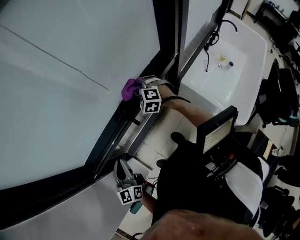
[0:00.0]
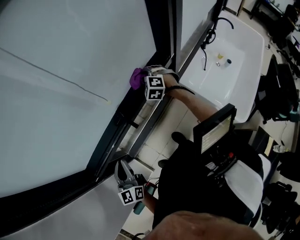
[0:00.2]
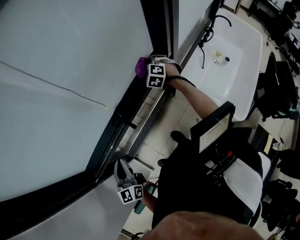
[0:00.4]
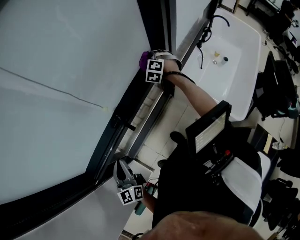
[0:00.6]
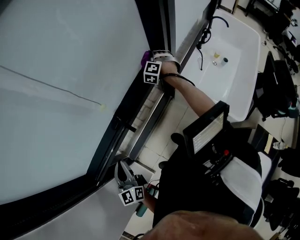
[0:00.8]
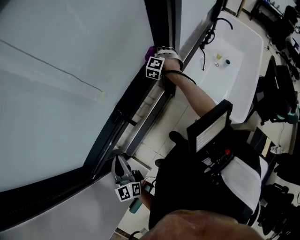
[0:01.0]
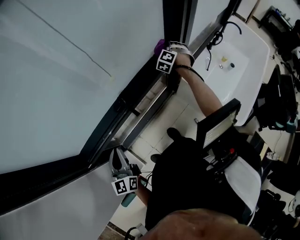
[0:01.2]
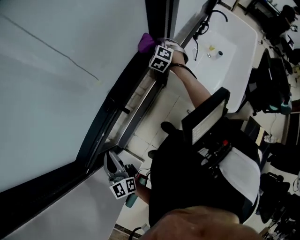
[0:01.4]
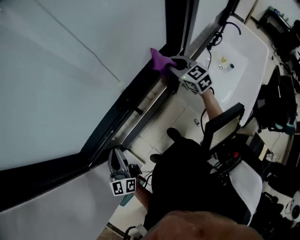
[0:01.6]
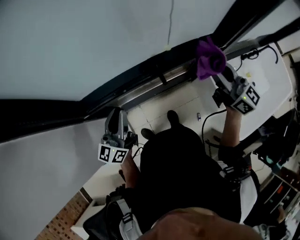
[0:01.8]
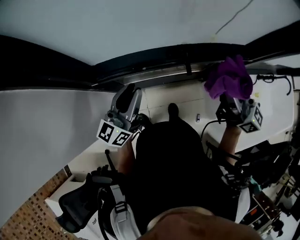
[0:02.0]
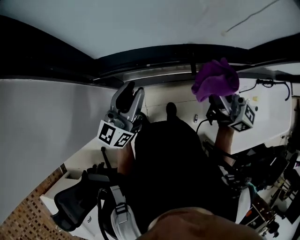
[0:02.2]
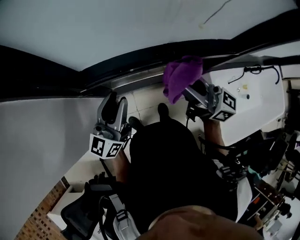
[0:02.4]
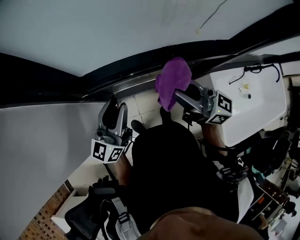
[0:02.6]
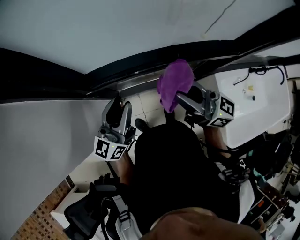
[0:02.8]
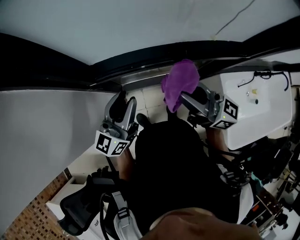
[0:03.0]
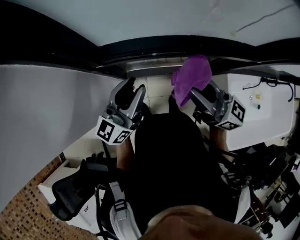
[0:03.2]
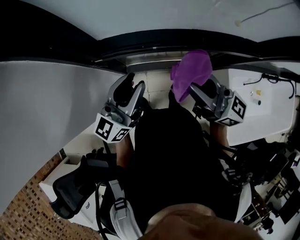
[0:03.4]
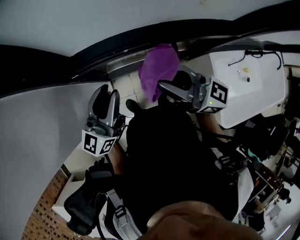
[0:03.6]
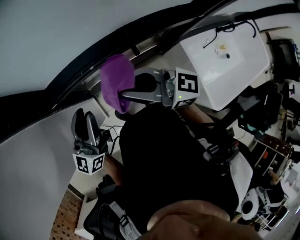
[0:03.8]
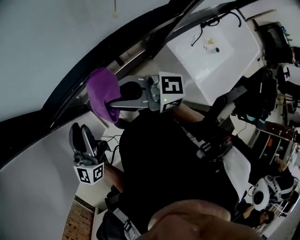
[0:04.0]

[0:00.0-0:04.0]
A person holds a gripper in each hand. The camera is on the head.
0:00.0 to 0:01.4: The right gripper shifts by roughly 20 cm, and changes its angle by some 30 degrees.
0:01.4 to 0:02.6: The right gripper moves roughly 40 cm, and tips its fingers upward by approximately 60 degrees; the left gripper opens.
0:02.6 to 0:04.0: The right gripper heads to the left, covering approximately 5 cm.

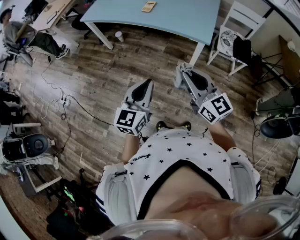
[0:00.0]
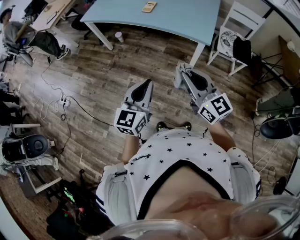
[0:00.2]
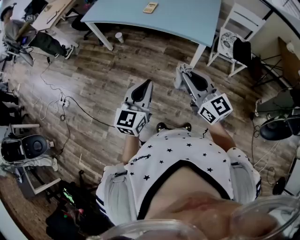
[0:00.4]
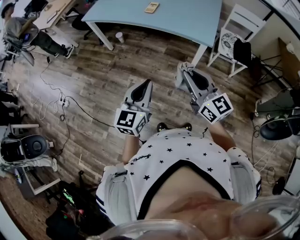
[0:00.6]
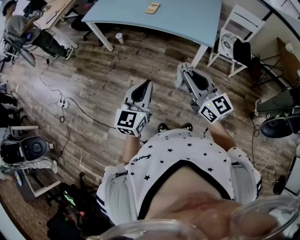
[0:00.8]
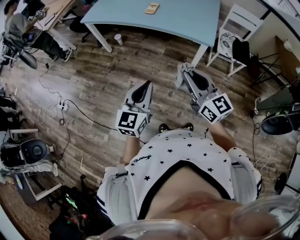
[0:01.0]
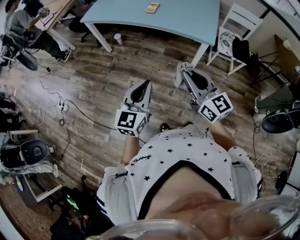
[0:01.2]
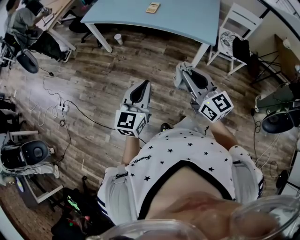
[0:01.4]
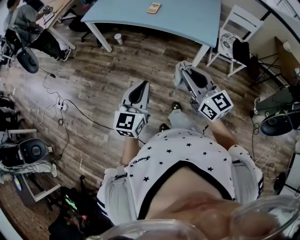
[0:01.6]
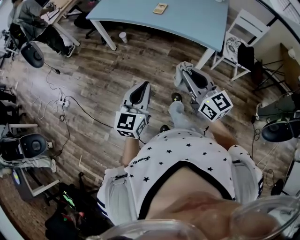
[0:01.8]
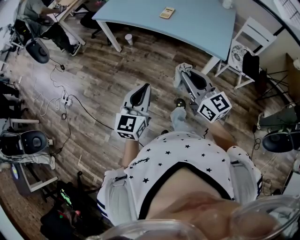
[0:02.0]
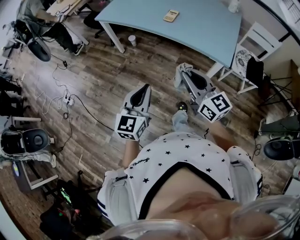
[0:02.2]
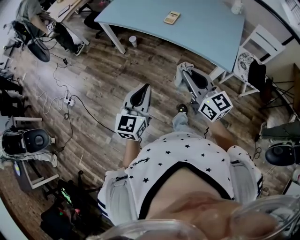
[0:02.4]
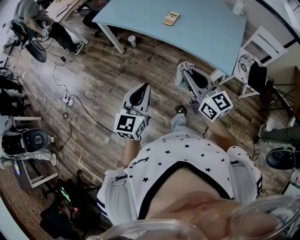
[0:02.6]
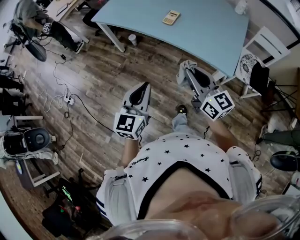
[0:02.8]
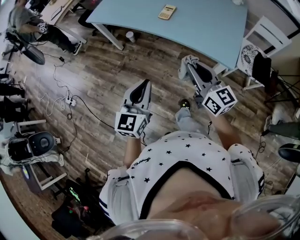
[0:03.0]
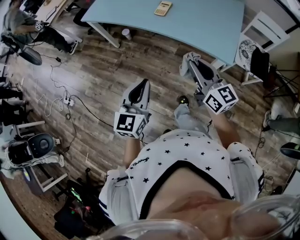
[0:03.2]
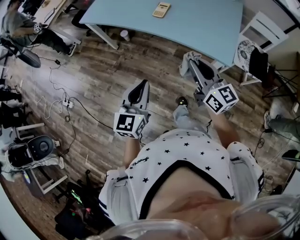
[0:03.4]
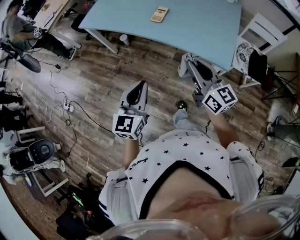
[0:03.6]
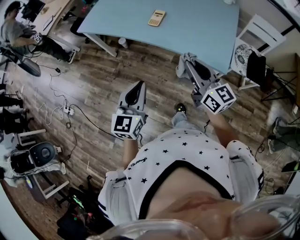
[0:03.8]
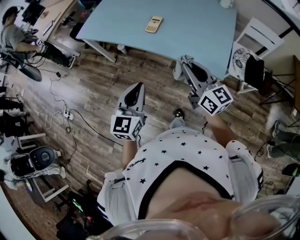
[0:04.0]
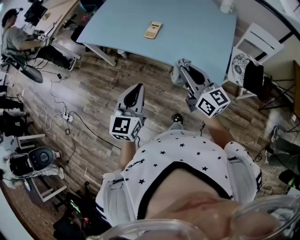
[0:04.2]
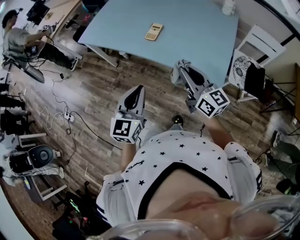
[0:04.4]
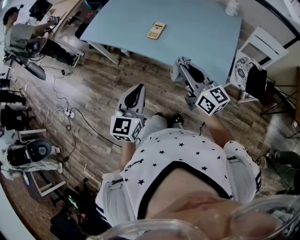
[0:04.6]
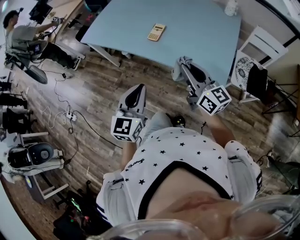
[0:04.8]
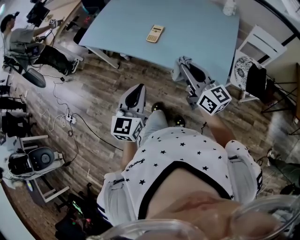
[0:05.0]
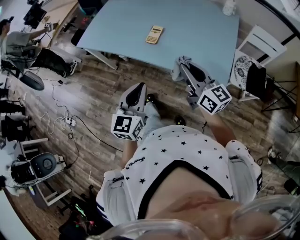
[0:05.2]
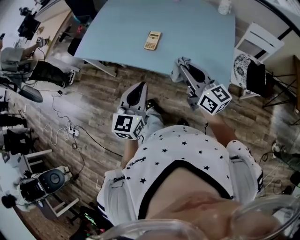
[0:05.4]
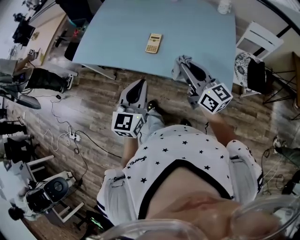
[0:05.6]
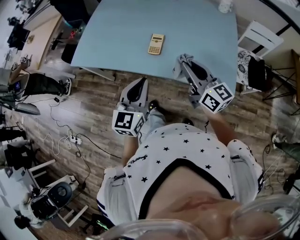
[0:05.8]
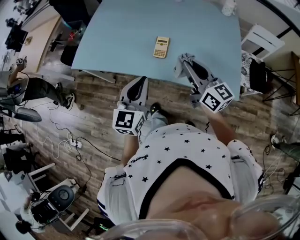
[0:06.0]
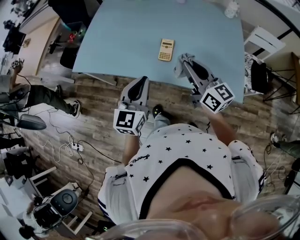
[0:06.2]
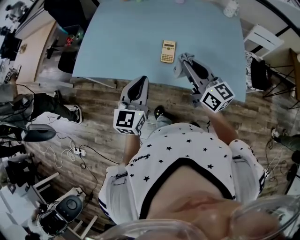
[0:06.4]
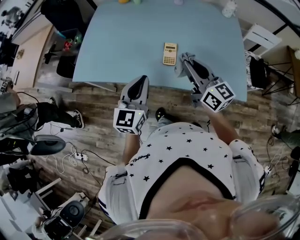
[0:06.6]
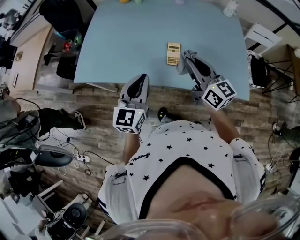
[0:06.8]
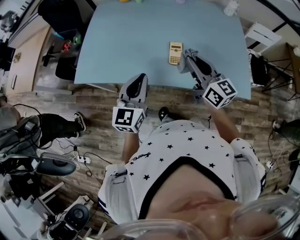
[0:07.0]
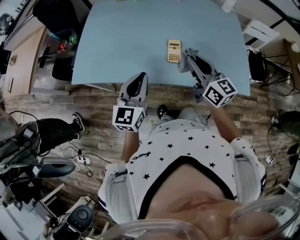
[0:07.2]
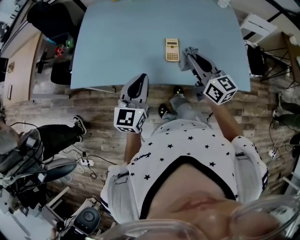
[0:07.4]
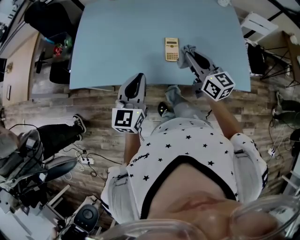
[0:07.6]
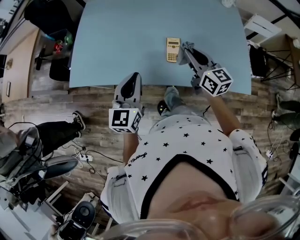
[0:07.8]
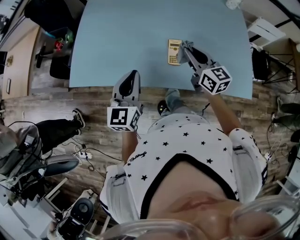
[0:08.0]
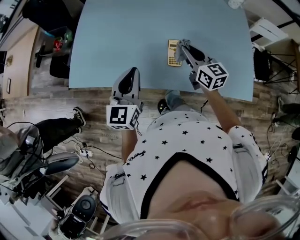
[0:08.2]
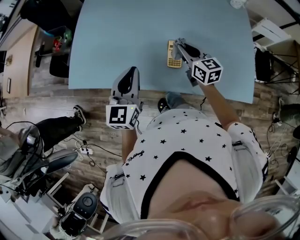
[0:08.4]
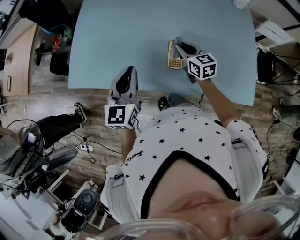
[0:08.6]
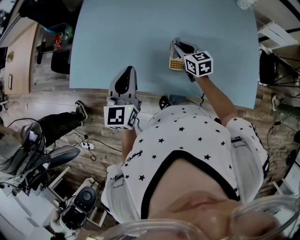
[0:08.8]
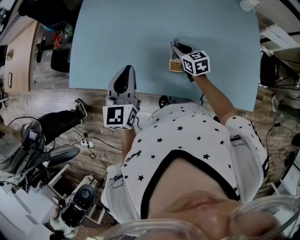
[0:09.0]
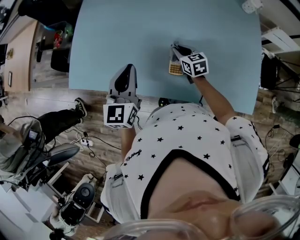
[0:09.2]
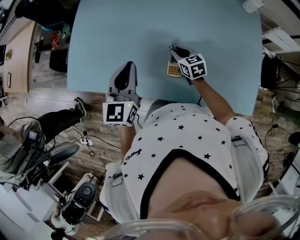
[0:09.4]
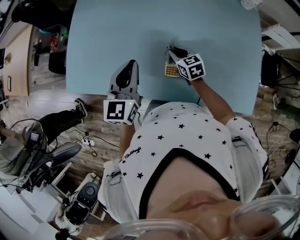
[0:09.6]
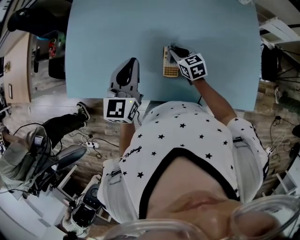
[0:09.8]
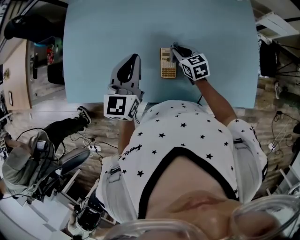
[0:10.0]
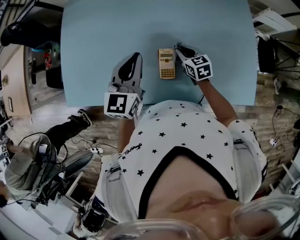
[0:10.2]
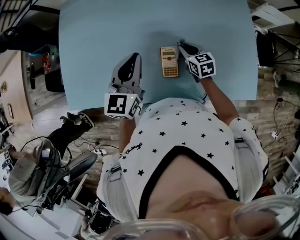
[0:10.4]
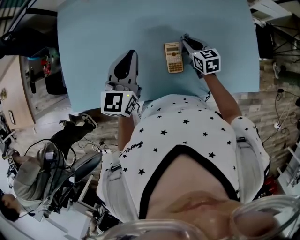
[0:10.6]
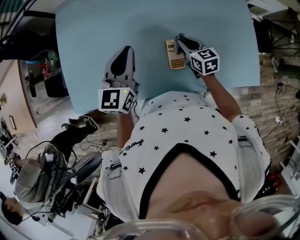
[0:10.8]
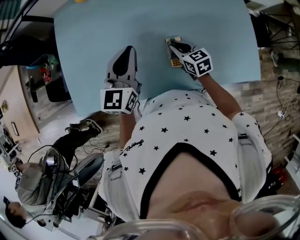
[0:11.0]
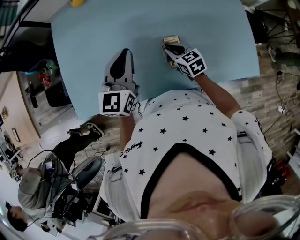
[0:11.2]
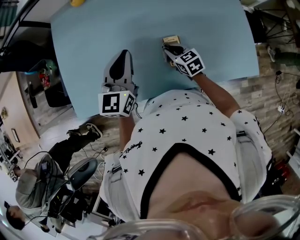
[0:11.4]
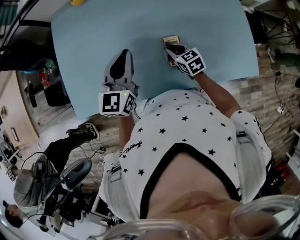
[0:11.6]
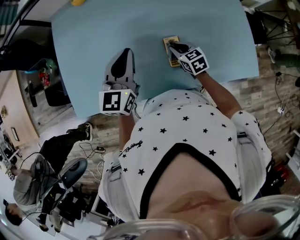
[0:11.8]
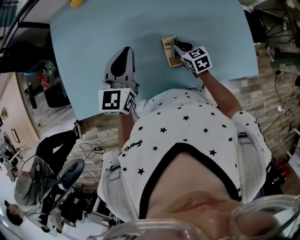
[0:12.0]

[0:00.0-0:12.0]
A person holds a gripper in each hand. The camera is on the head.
0:00.0 to 0:01.6: Both grippers travel together to the left, approximately 10 cm.
0:01.6 to 0:03.0: Both grippers travel together forward, roughly 20 cm.
0:03.0 to 0:04.4: The two grippers go approximately 10 cm forward and to the right.
0:04.4 to 0:06.0: The right gripper is displaced forward and to the left by some 20 cm. The left gripper travels forward by some 20 cm.
0:06.0 to 0:07.6: The right gripper moves forward and to the left, some 10 cm. The left gripper shifts roughly 15 cm to the left and forward.
0:07.6 to 0:09.0: The left gripper heads forward, covering about 10 cm; the right gripper heads downward and forward, covering approximately 25 cm, and changes its angle by roughly 30 degrees.
0:09.0 to 0:10.4: The right gripper travels to the right by some 10 cm, while the left gripper shifts some 10 cm forward and to the right.
0:10.4 to 0:12.0: The left gripper shifts by some 5 cm.

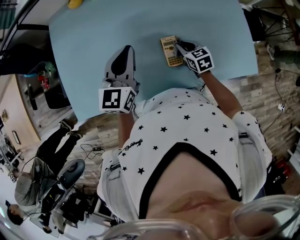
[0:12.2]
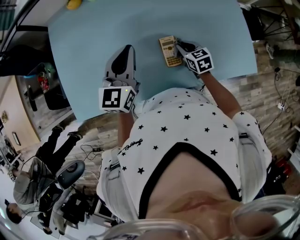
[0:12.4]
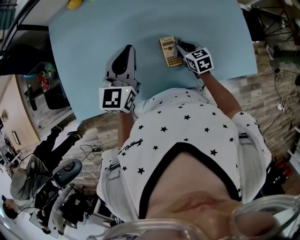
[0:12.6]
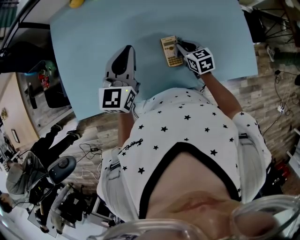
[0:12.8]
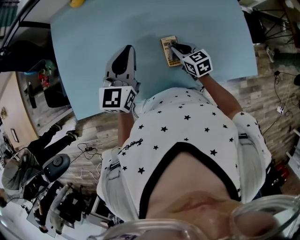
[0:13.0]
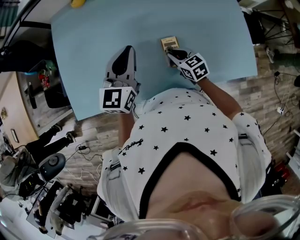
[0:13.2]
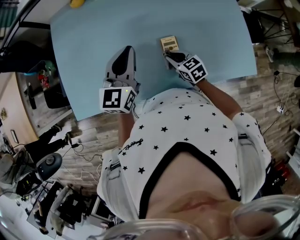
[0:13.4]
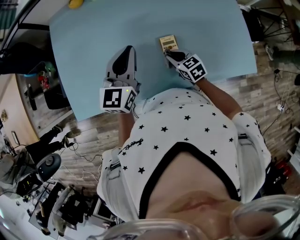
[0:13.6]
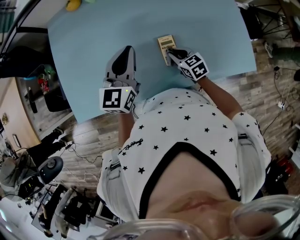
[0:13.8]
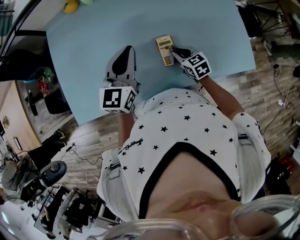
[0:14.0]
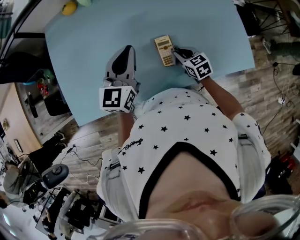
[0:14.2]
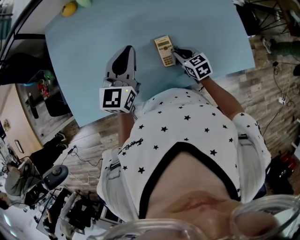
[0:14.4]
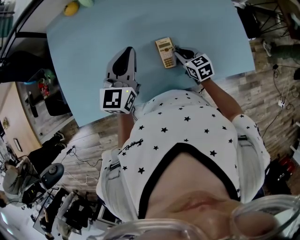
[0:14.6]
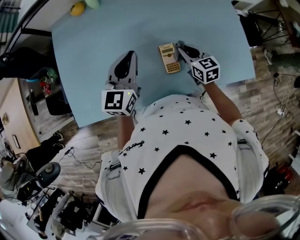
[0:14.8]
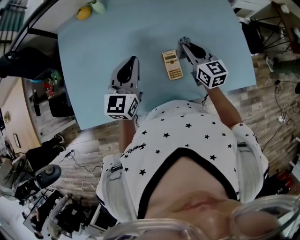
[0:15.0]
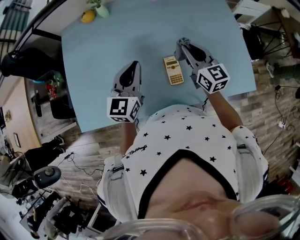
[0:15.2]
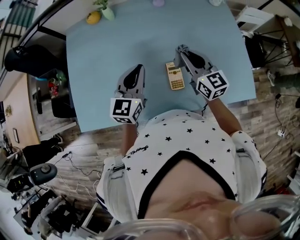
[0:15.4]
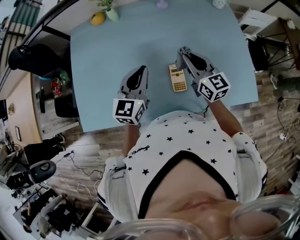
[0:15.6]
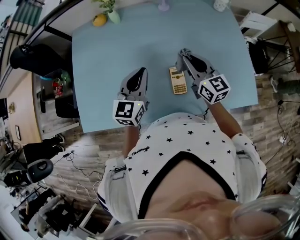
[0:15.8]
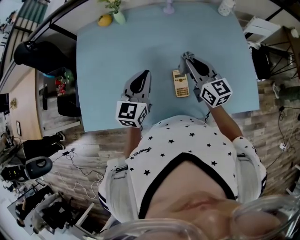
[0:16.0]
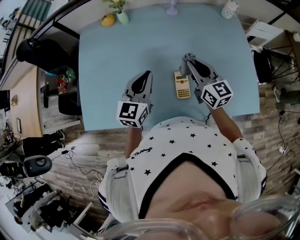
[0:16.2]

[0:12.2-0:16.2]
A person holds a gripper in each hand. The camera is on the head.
0:12.2 to 0:13.6: The right gripper shifts roughly 5 cm to the left.
0:13.6 to 0:14.8: The right gripper goes some 10 cm to the right and upward.
0:14.8 to 0:16.2: The right gripper heads upward, covering about 15 cm, and swivels about 20 degrees.

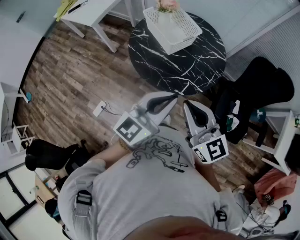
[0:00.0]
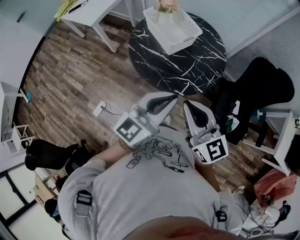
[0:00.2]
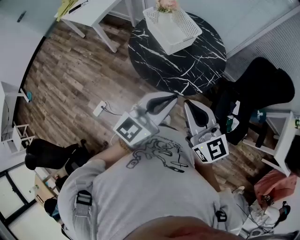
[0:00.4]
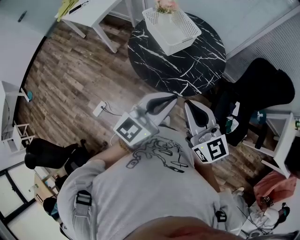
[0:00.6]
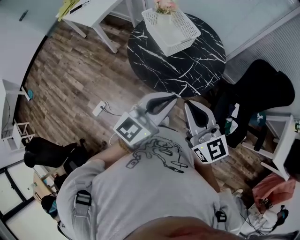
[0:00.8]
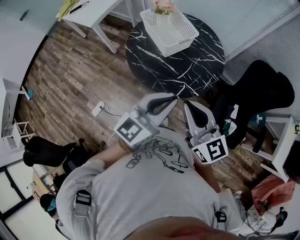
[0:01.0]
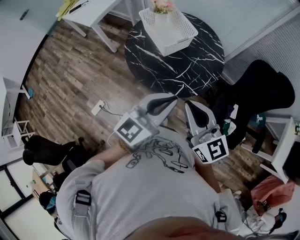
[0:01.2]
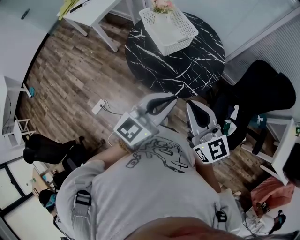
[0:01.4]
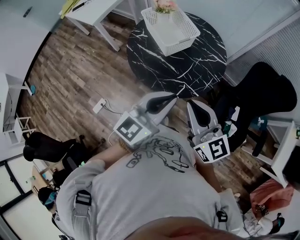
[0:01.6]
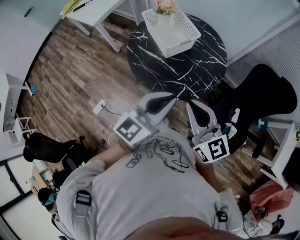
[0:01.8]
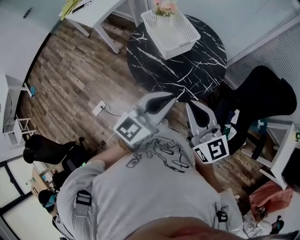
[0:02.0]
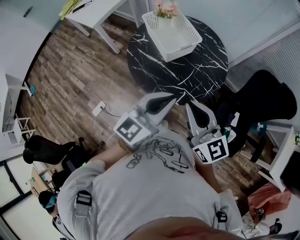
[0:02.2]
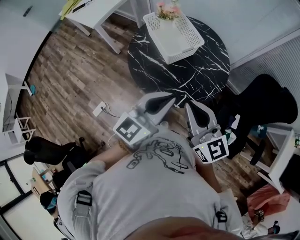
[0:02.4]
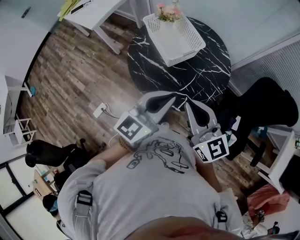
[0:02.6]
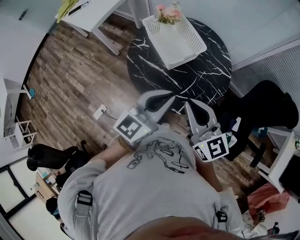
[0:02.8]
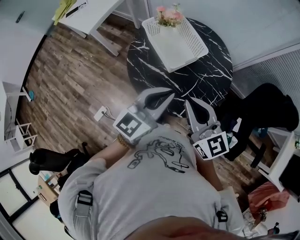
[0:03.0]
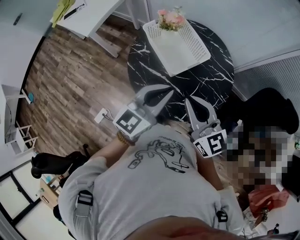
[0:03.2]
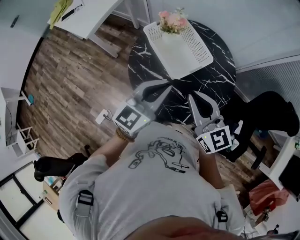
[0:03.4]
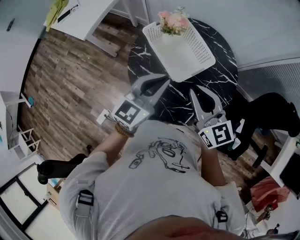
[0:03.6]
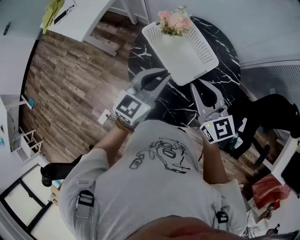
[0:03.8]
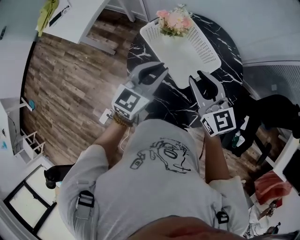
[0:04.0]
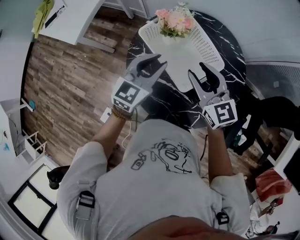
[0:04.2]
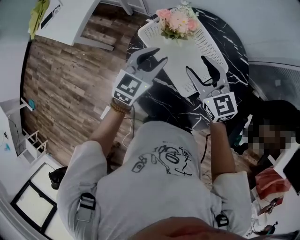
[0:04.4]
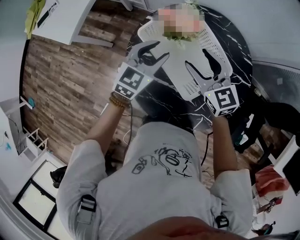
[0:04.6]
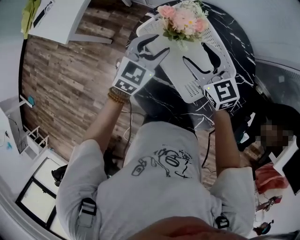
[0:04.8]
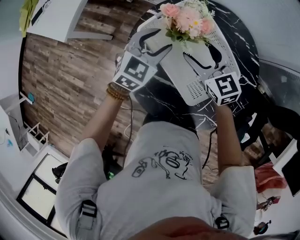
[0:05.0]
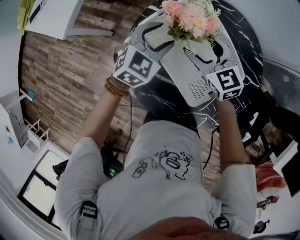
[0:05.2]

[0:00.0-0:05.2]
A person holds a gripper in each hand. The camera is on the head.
0:00.0 to 0:01.8: Both grippers move to the right, roughly 5 cm.
0:01.8 to 0:03.4: The right gripper travels forward by approximately 25 cm. Meanwhile the left gripper travels forward and to the left by approximately 30 cm.
0:03.4 to 0:05.2: Both grippers move forward and downward, approximately 40 cm. The left gripper tips its fingers downward by approximately 30 degrees, and opens up. The right gripper opens.
